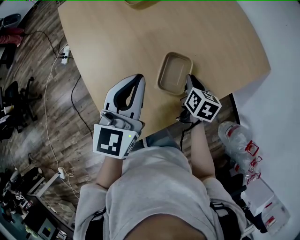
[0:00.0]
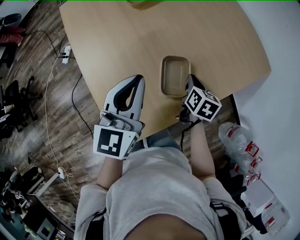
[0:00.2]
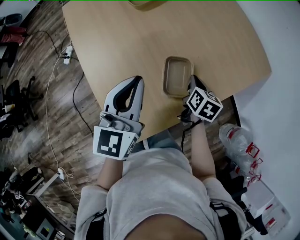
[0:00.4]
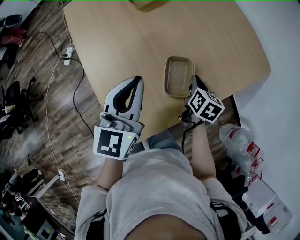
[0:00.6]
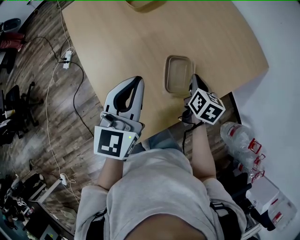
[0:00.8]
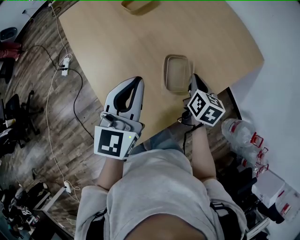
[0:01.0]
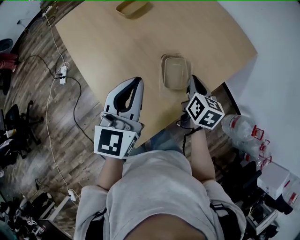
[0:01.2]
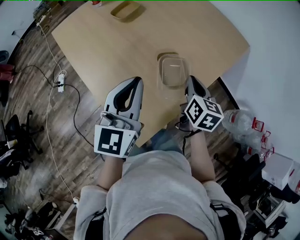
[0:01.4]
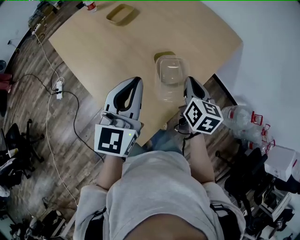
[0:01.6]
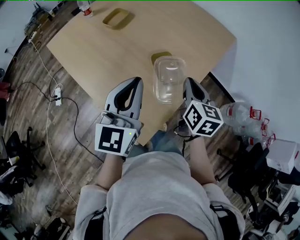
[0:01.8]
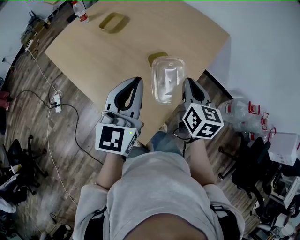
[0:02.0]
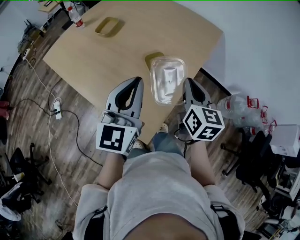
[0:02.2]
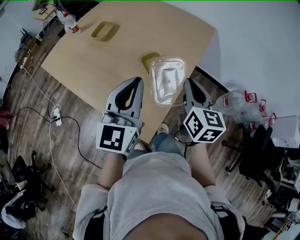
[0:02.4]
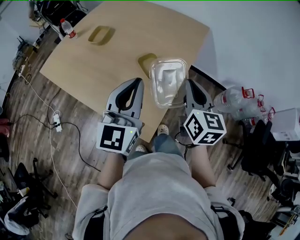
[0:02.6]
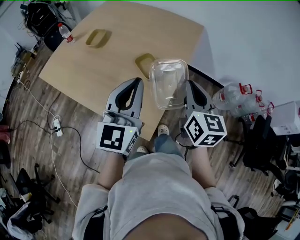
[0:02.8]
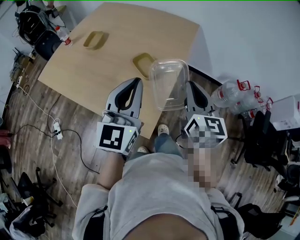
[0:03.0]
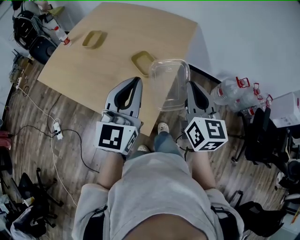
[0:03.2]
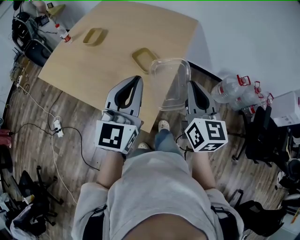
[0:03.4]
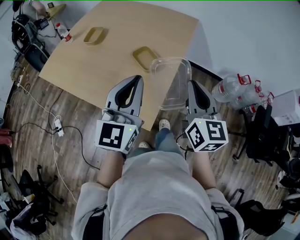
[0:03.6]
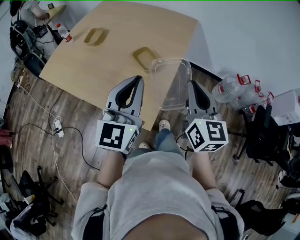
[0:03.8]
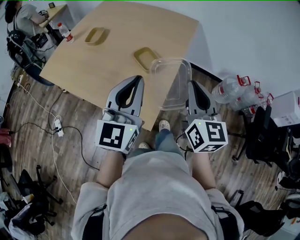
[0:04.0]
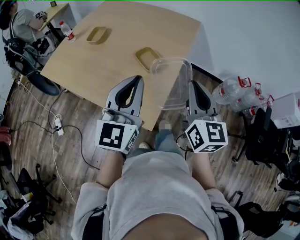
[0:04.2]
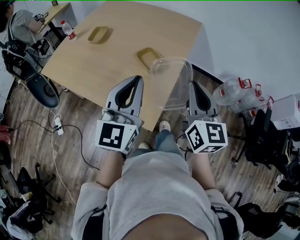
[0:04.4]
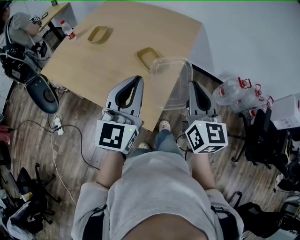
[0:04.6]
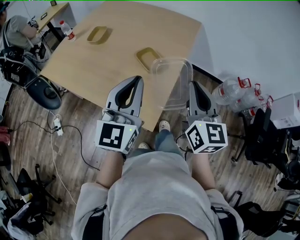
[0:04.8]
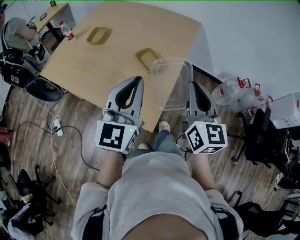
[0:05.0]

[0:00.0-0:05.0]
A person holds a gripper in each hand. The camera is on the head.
0:00.0 to 0:01.6: The right gripper is displaced upward and backward by some 20 cm, and swivels about 20 degrees, while the left gripper is displaced backward and upward by some 10 cm.
0:01.6 to 0:03.4: The left gripper travels backward, to the right and upward by roughly 15 cm, and changes its angle by approximately 20 degrees; the right gripper goes roughly 25 cm backward and upward, and turns by some 30 degrees.
0:03.4 to 0:05.0: The grippers move only a little.

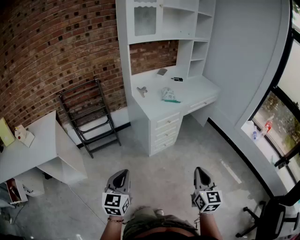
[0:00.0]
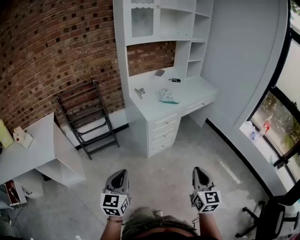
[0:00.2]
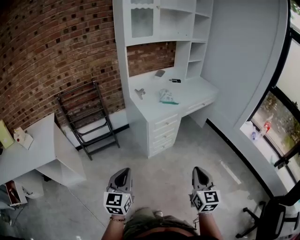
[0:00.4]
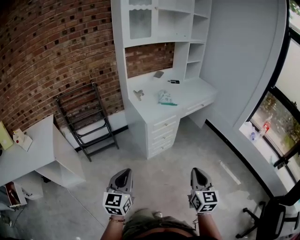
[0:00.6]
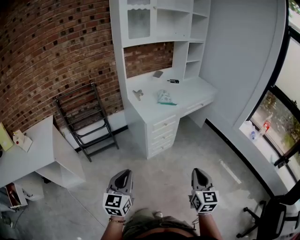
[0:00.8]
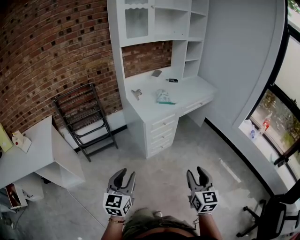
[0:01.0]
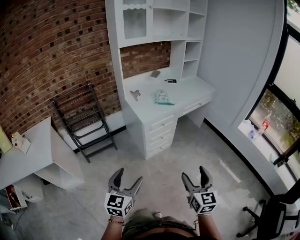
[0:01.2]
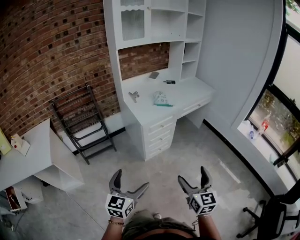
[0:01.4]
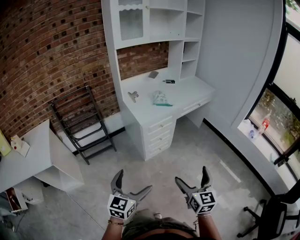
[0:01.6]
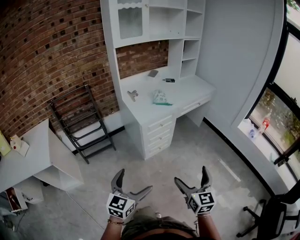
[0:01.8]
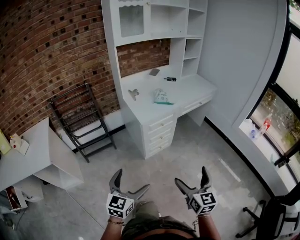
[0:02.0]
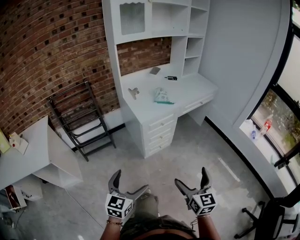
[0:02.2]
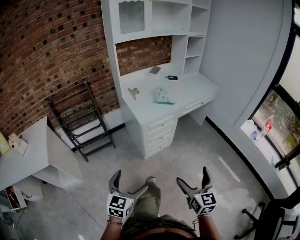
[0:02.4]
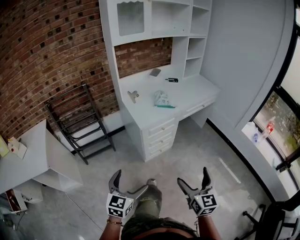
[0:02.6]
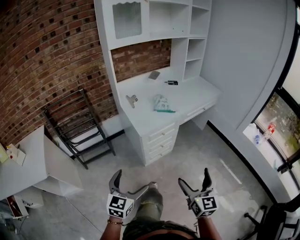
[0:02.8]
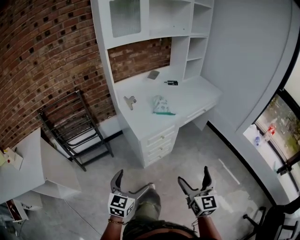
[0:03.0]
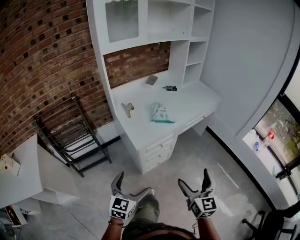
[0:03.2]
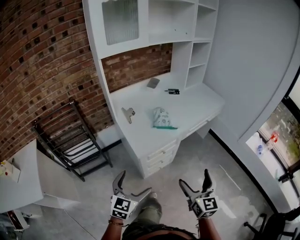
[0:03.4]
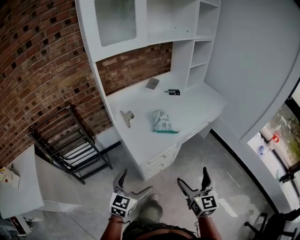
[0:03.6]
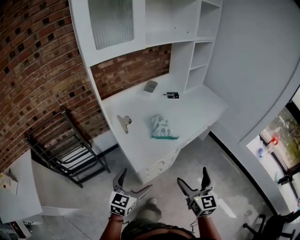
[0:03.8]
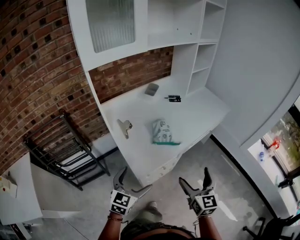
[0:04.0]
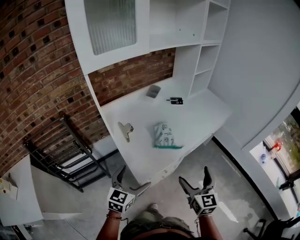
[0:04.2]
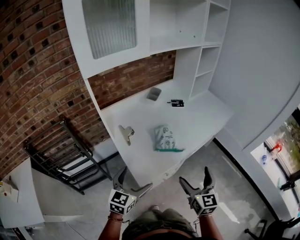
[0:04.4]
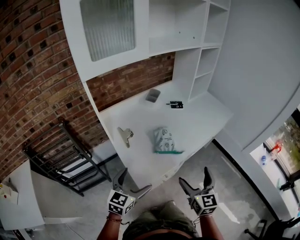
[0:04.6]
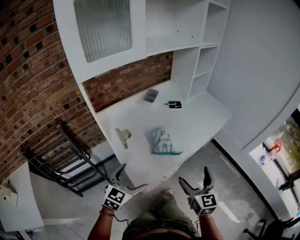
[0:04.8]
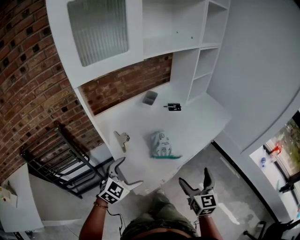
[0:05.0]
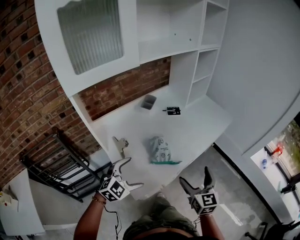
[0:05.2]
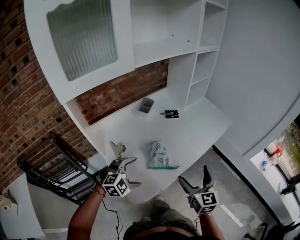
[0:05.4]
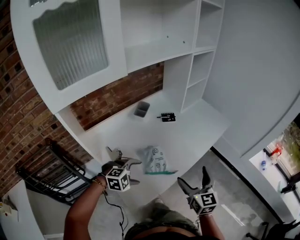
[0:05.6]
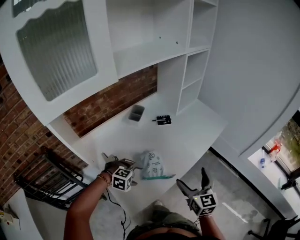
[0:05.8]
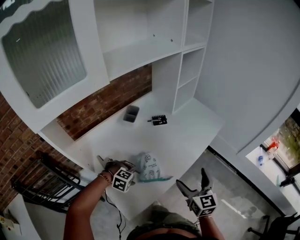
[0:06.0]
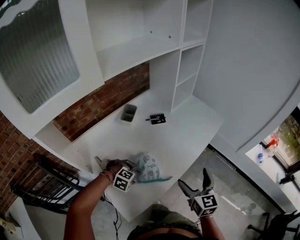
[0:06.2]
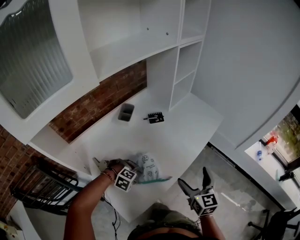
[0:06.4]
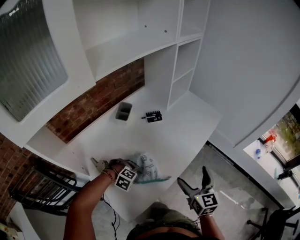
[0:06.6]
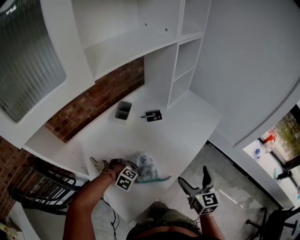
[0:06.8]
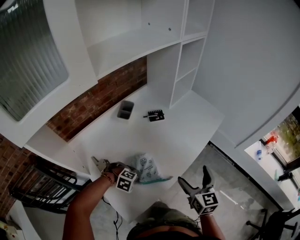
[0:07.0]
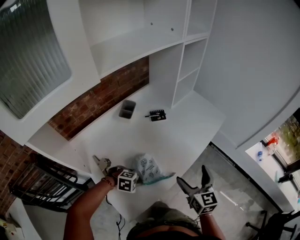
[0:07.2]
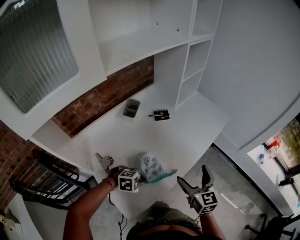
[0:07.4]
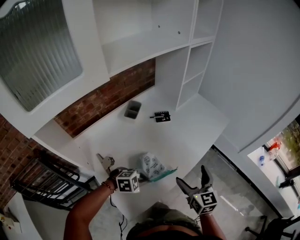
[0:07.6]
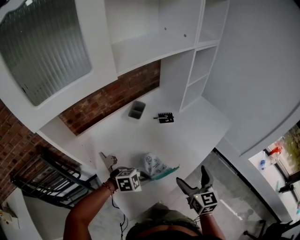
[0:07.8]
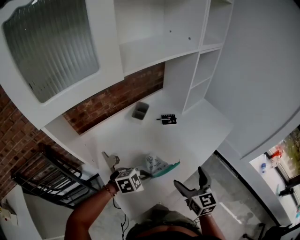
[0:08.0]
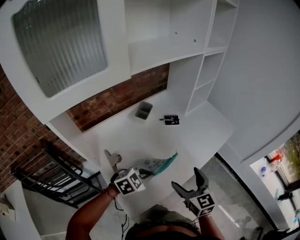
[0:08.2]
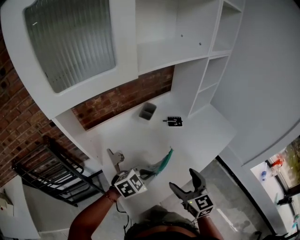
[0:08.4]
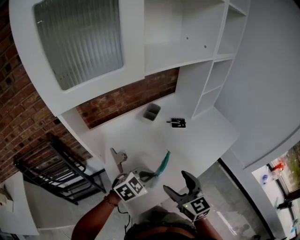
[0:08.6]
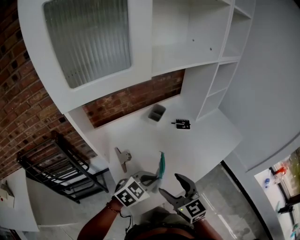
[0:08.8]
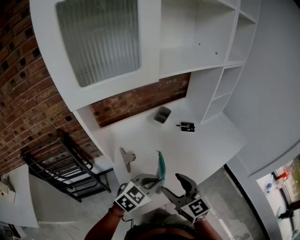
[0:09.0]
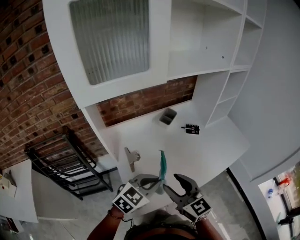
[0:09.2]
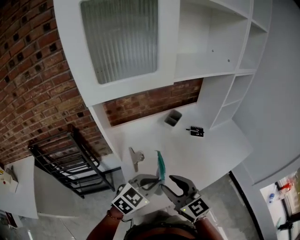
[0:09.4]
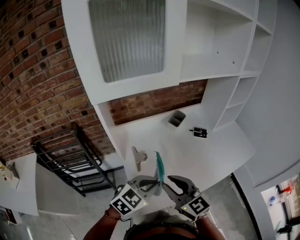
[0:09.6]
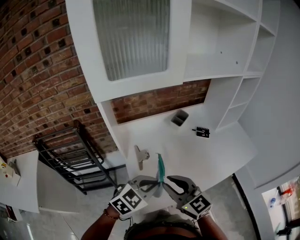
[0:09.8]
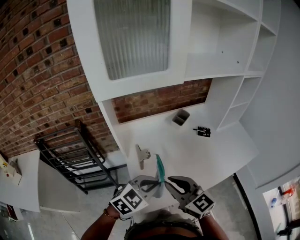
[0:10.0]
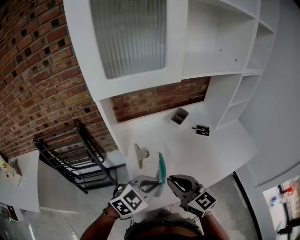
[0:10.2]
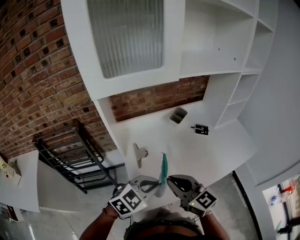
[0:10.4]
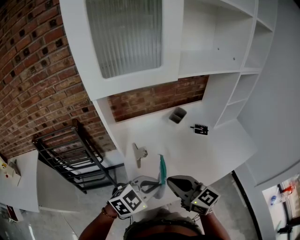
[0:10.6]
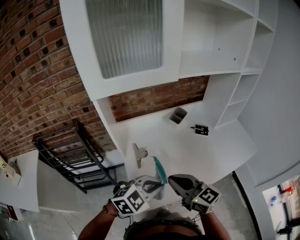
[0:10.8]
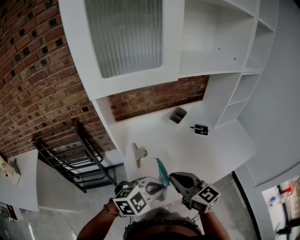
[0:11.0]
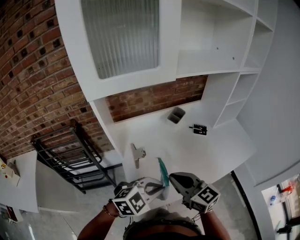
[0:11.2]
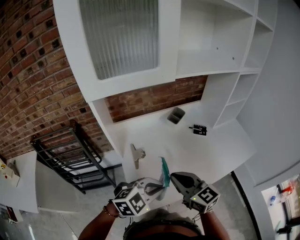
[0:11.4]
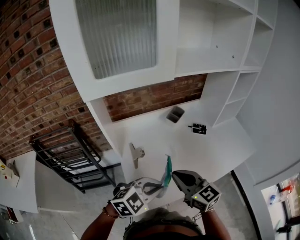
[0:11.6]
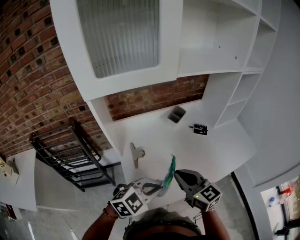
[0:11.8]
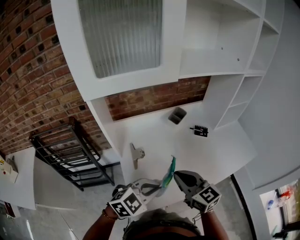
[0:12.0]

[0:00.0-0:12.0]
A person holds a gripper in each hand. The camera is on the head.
0:00.0 to 0:01.6: The right gripper opens. Meanwhile the left gripper moves to the right, some 10 cm, and opens up.
0:01.6 to 0:03.0: Both grippers move forward, roughly 20 cm.
0:03.0 to 0:04.4: The two grippers go roughly 35 cm forward.
0:04.4 to 0:06.0: The left gripper shifts by roughly 25 cm, angles its fingers downward, by about 60 degrees, and closes, while the right gripper ends up approximately 20 cm from where it was.
0:06.0 to 0:07.6: The left gripper moves approximately 5 cm, turns by about 30 degrees, and closes up.
0:07.6 to 0:09.0: The left gripper travels upward by about 15 cm, and changes its angle by about 50 degrees. The right gripper changes place by some 20 cm, swivels approximately 40 degrees, and closes up.
0:09.0 to 0:10.4: The right gripper rotates some 20 degrees, and closes up. Meanwhile the left gripper changes place by roughly 5 cm.
0:10.4 to 0:12.0: The right gripper shifts roughly 5 cm forward.

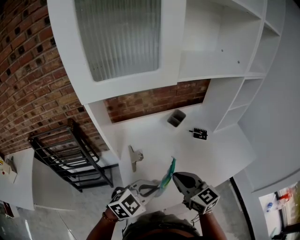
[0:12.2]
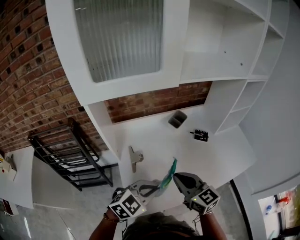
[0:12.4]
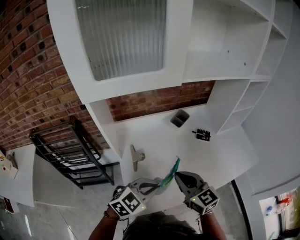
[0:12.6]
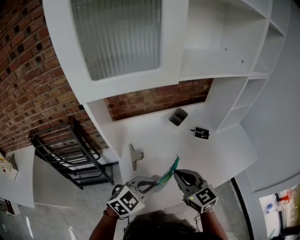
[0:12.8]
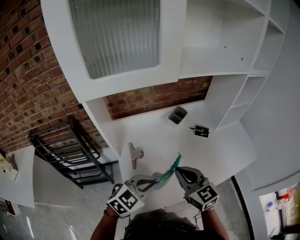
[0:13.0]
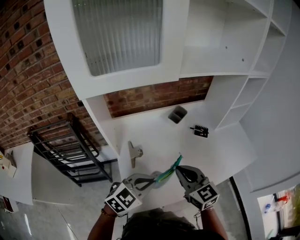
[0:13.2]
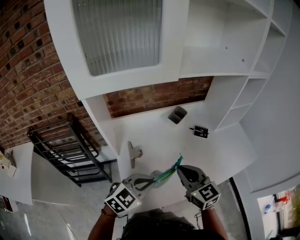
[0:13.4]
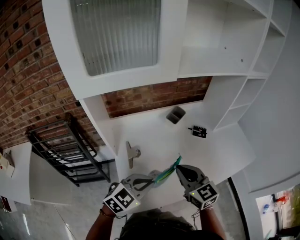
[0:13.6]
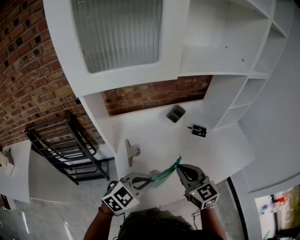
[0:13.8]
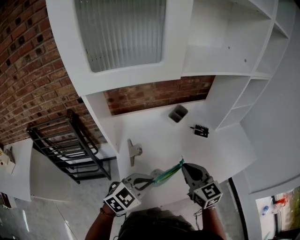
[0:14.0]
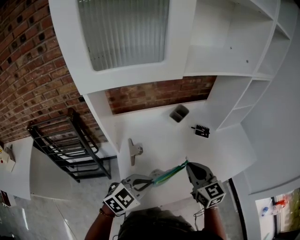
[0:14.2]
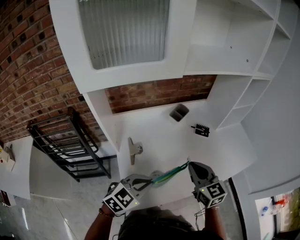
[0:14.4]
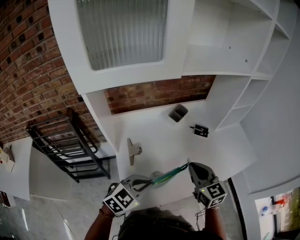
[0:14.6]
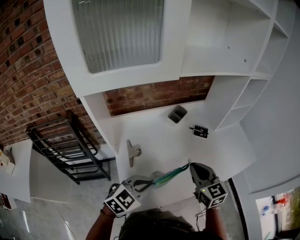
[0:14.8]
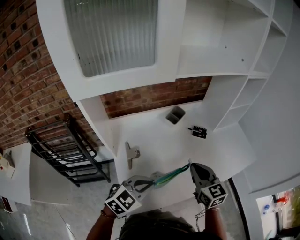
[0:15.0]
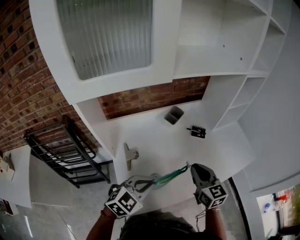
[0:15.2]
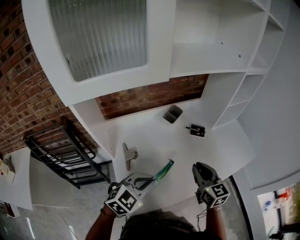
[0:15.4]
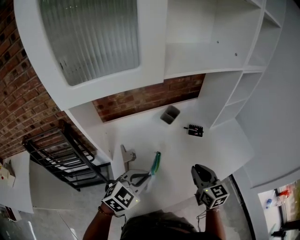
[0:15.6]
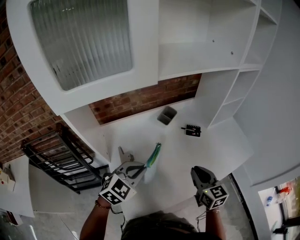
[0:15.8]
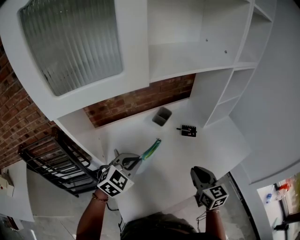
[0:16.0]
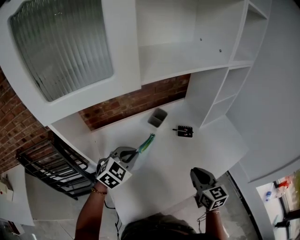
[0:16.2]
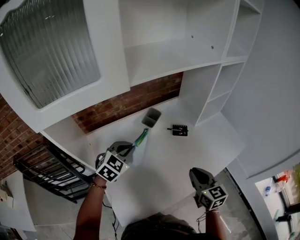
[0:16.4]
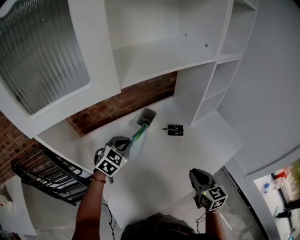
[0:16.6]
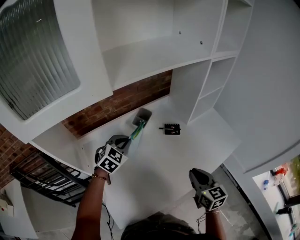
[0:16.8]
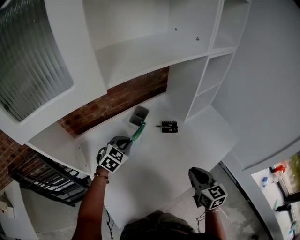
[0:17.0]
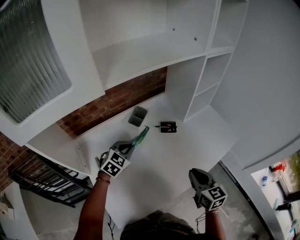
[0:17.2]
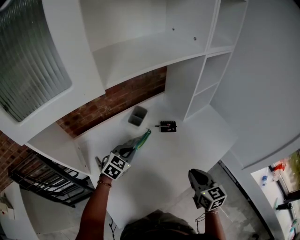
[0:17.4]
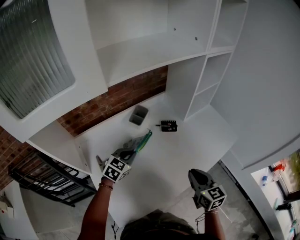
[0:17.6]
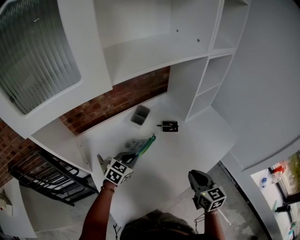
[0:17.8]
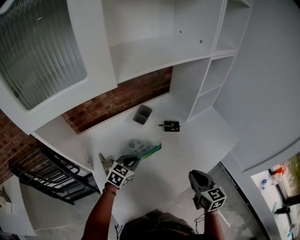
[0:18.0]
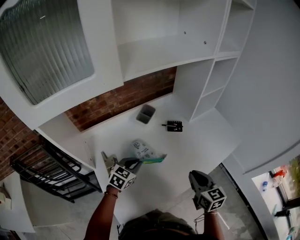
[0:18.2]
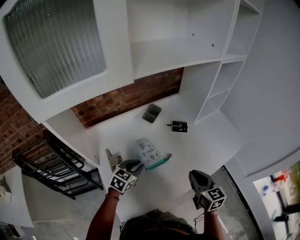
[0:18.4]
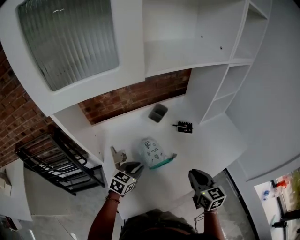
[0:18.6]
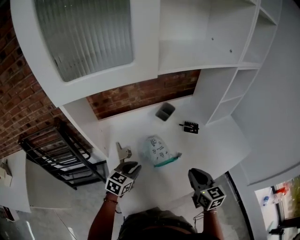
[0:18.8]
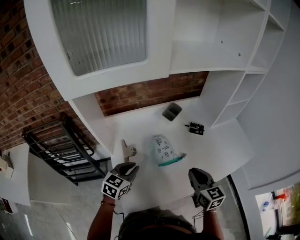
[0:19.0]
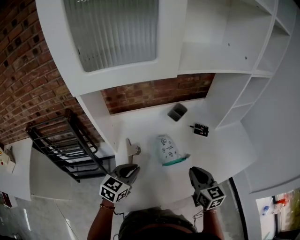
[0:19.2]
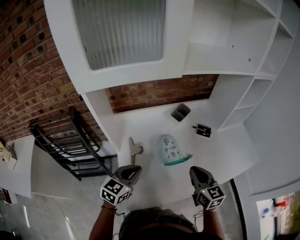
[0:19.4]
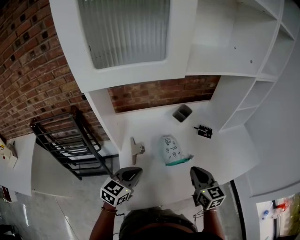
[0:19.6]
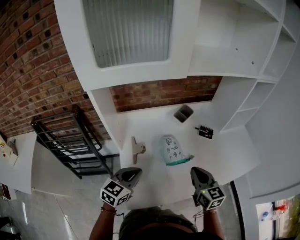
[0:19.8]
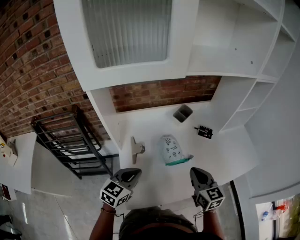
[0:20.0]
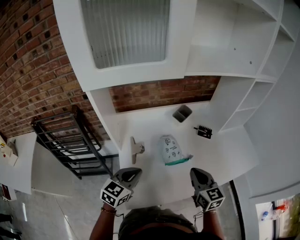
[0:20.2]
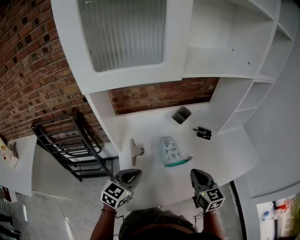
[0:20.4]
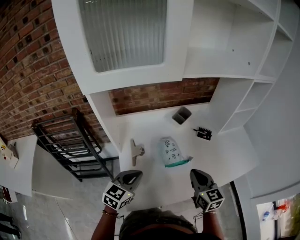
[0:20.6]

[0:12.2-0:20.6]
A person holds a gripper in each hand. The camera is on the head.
0:12.2 to 0:13.6: There are only small adjustments of the grippers.
0:13.6 to 0:15.0: The right gripper shifts some 5 cm to the right.
0:15.0 to 0:16.4: The right gripper travels to the right by roughly 10 cm. The left gripper shifts approximately 20 cm forward.
0:16.4 to 0:17.8: The left gripper shifts approximately 10 cm downward and to the right.
0:17.8 to 0:19.2: The left gripper travels backward and to the left by approximately 20 cm, and changes its angle by approximately 20 degrees, while the right gripper travels to the left by approximately 10 cm.
0:19.2 to 0:20.6: The grippers make only small movements.
